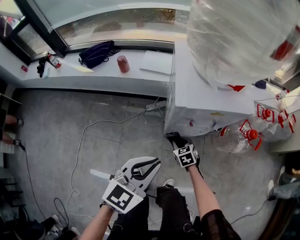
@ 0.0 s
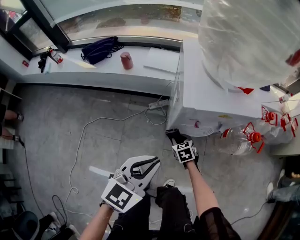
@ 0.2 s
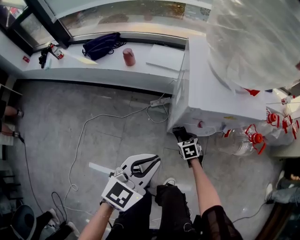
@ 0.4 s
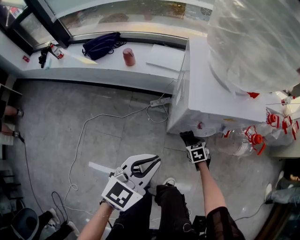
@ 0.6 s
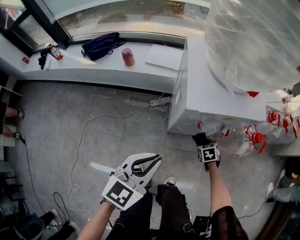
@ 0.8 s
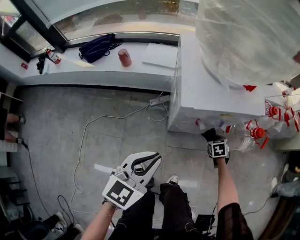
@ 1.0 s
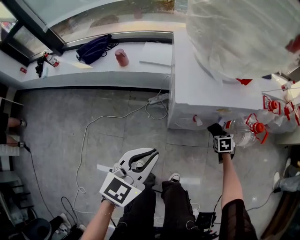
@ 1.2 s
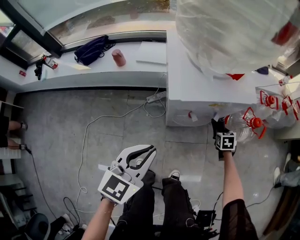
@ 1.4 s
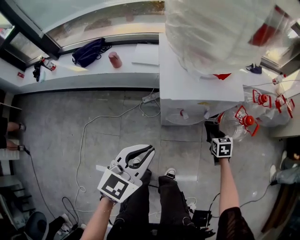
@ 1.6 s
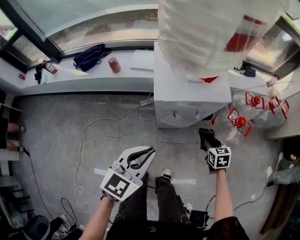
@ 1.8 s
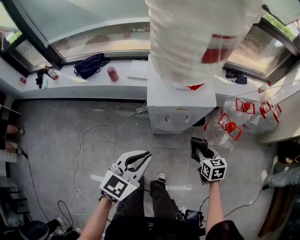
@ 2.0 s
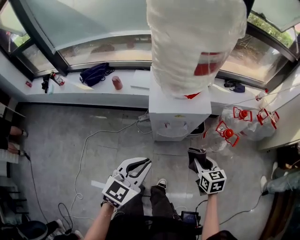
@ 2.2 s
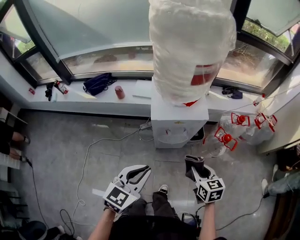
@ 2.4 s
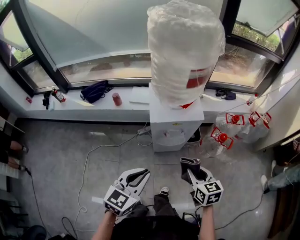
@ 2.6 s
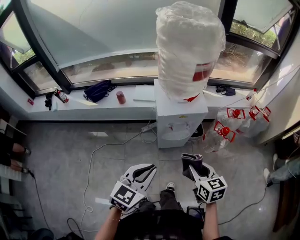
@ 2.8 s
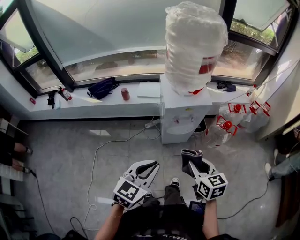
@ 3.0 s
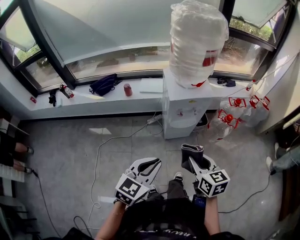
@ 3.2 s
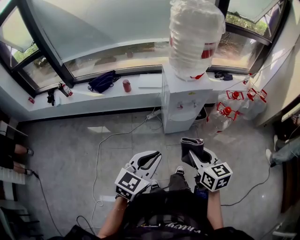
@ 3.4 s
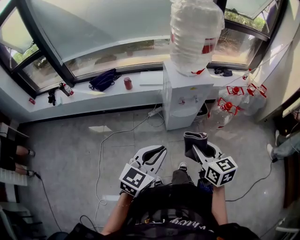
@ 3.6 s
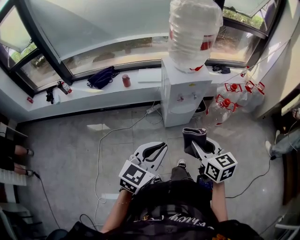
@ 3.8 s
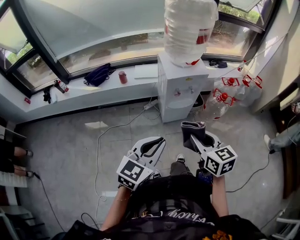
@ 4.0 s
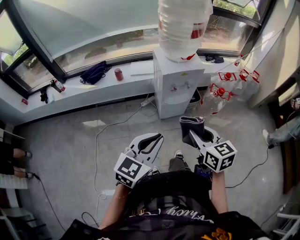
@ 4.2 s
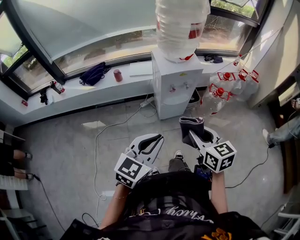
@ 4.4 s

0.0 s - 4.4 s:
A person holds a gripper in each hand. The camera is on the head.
0.0 s - 1.4 s: The right gripper travels to the right by about 25 cm, and changes its angle by roughly 30 degrees.
1.4 s - 3.0 s: The right gripper heads upward and backward, covering approximately 50 cm, and swivels about 40 degrees. The left gripper is displaced upward and backward by about 30 cm.
3.0 s - 4.4 s: The right gripper heads backward and upward, covering approximately 10 cm; the left gripper travels backward by some 10 cm.

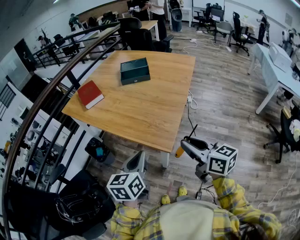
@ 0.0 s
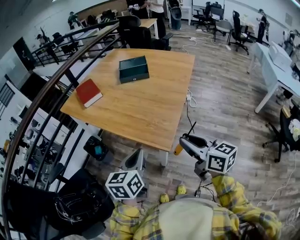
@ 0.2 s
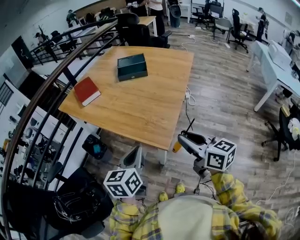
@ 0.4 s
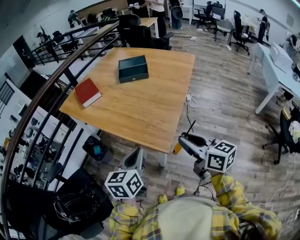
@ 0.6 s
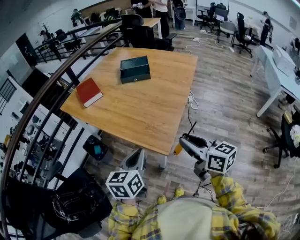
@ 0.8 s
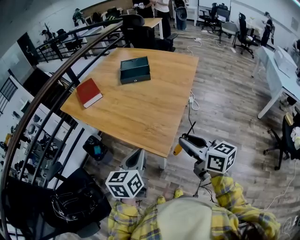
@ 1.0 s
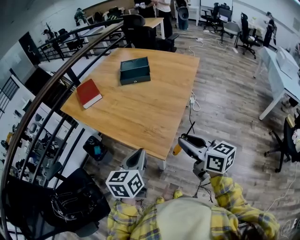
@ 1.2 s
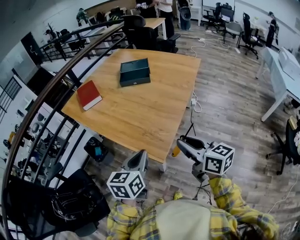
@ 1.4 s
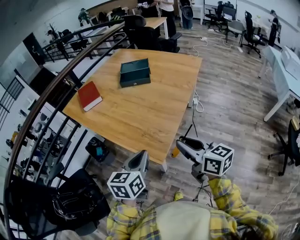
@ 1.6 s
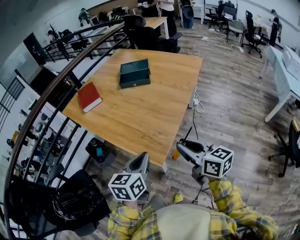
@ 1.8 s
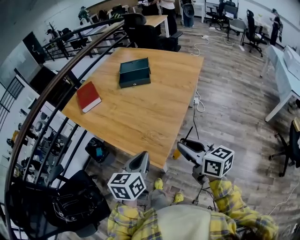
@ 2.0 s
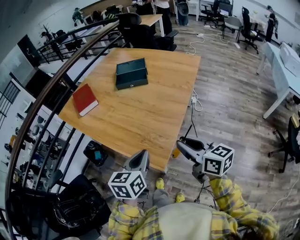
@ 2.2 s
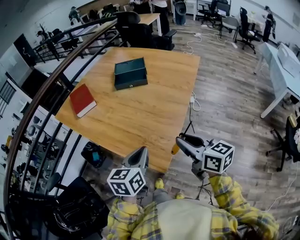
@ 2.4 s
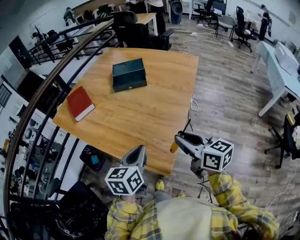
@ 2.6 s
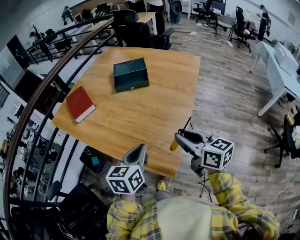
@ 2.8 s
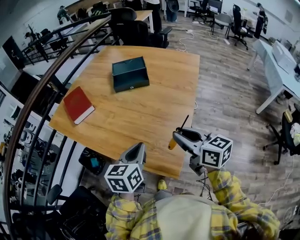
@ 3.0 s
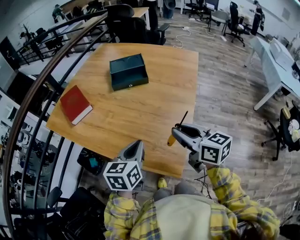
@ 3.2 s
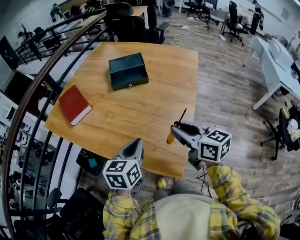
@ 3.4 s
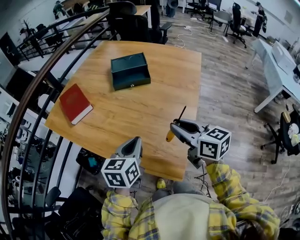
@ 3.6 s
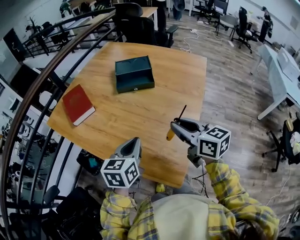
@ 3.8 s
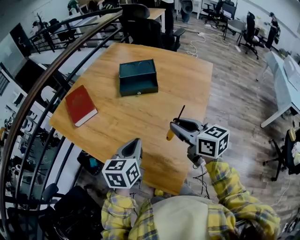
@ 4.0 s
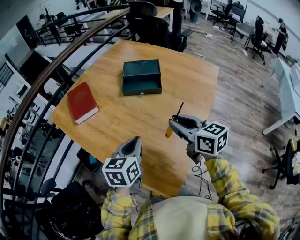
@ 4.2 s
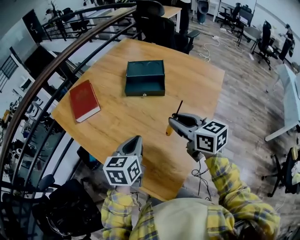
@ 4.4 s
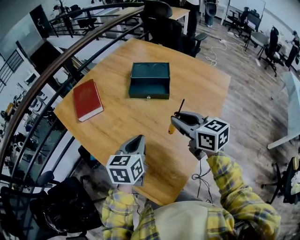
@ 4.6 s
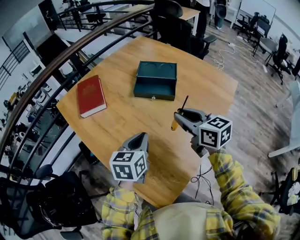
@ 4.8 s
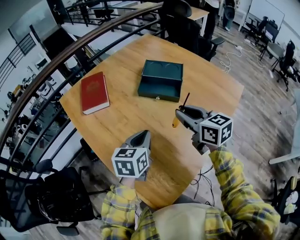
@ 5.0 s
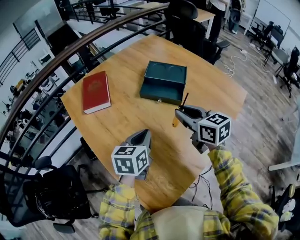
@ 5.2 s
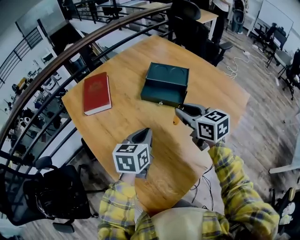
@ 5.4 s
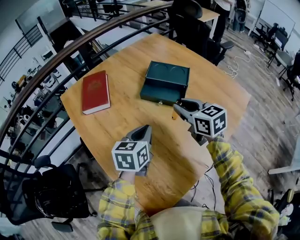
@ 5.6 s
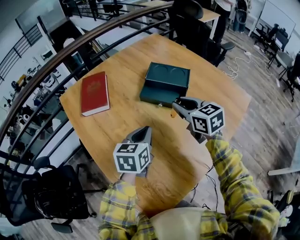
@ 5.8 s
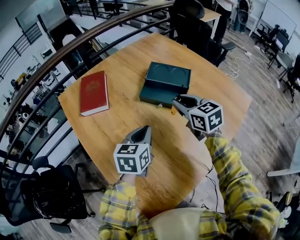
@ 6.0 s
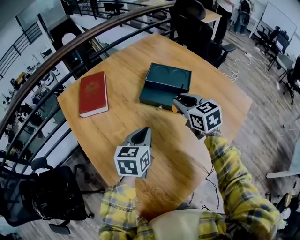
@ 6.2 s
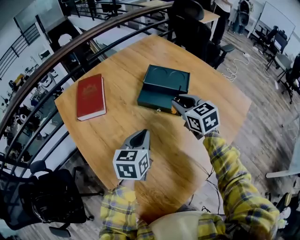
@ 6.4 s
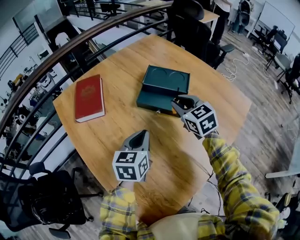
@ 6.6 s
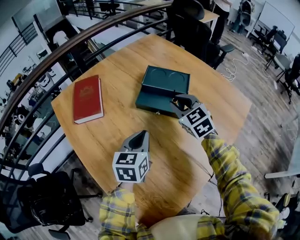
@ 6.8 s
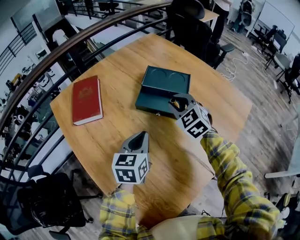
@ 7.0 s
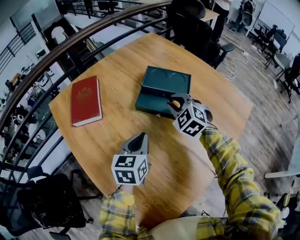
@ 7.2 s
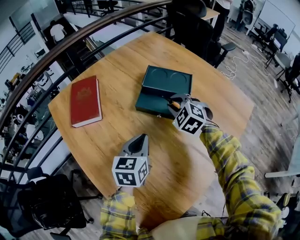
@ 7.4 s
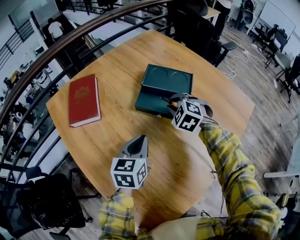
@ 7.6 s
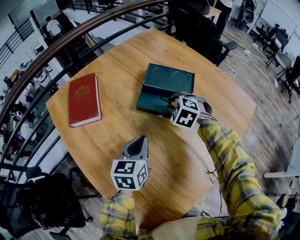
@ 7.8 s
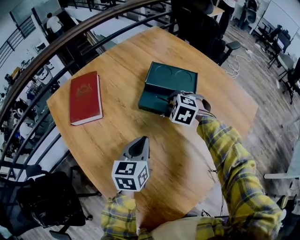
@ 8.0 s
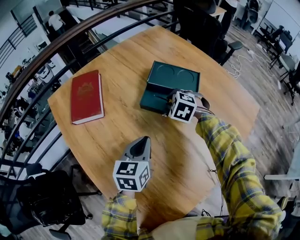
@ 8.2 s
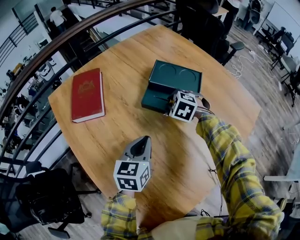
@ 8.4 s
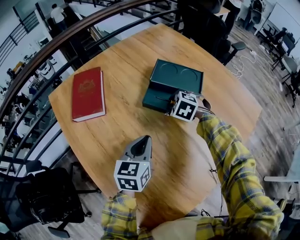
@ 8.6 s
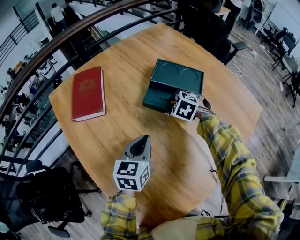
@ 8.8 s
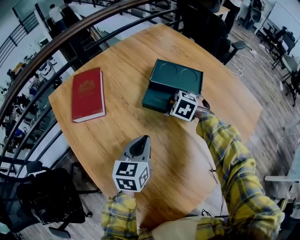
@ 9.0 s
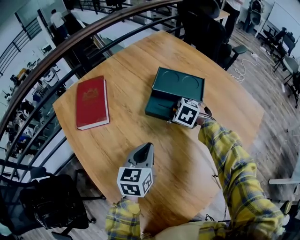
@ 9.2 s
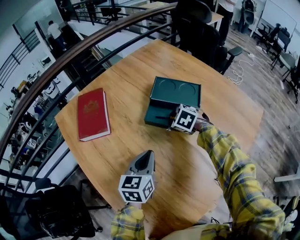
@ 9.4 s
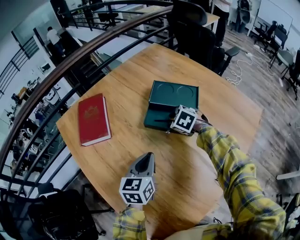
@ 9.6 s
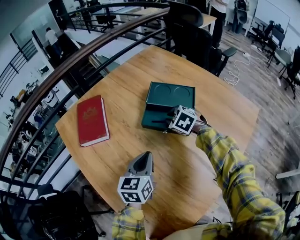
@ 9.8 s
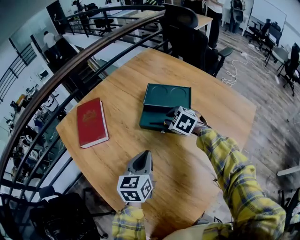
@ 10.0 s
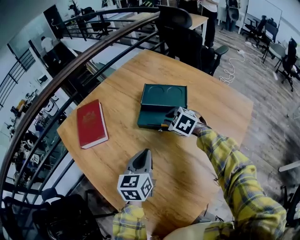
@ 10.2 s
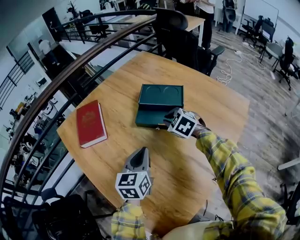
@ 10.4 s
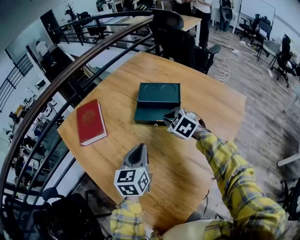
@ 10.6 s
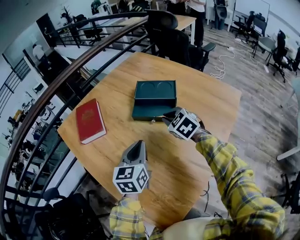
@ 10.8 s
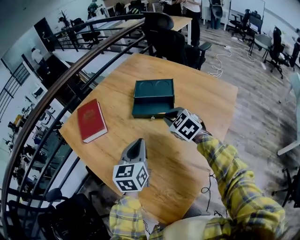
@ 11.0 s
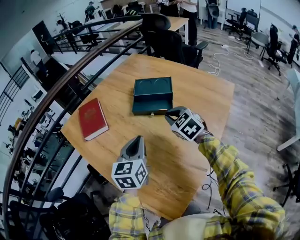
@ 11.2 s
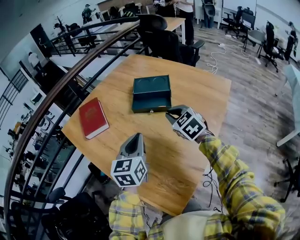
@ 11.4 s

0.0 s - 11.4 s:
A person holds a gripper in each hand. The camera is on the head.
0.0 s - 1.4 s: The right gripper travels forward by about 5 cm; the left gripper travels to the right by approximately 5 cm.
1.4 s - 2.8 s: Both grippers travel together forward, approximately 15 cm.
2.8 s - 4.2 s: Both grippers travel together forward, about 15 cm.
4.2 s - 5.6 s: The left gripper moves forward, some 10 cm; the right gripper moves forward, roughly 20 cm, and turns by some 20 degrees.
5.6 s - 7.2 s: The right gripper is displaced forward and downward by about 15 cm, and twists some 50 degrees counterclockwise, seen from behind. Meanwhile the left gripper moves forward, about 5 cm.
7.2 s - 8.6 s: The right gripper is displaced downward by about 10 cm, and rotates roughly 30 degrees.
8.6 s - 10.0 s: There are only small adjustments of the grippers.
10.0 s - 11.4 s: The left gripper heads backward and upward, covering roughly 15 cm. The right gripper goes approximately 20 cm backward and upward, and swivels approximately 30 degrees.

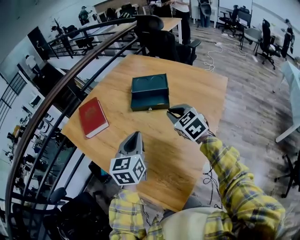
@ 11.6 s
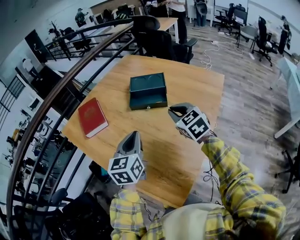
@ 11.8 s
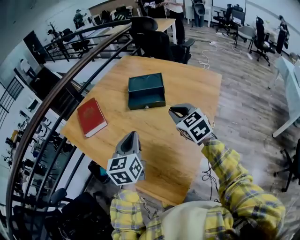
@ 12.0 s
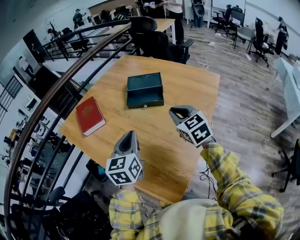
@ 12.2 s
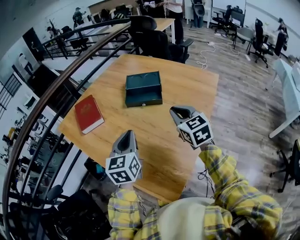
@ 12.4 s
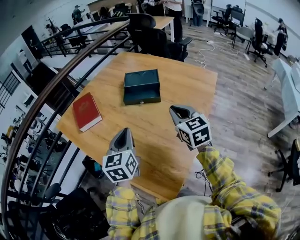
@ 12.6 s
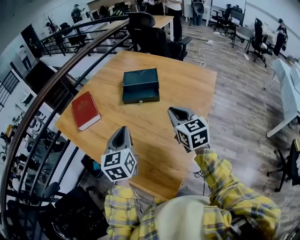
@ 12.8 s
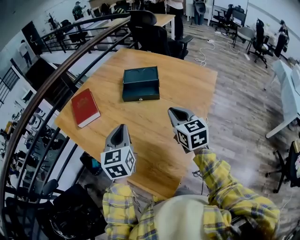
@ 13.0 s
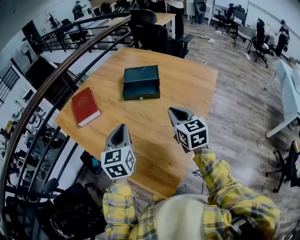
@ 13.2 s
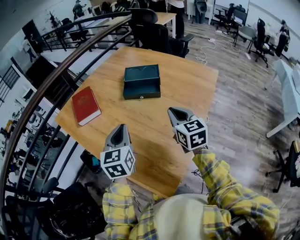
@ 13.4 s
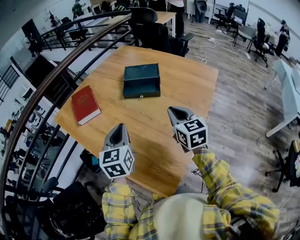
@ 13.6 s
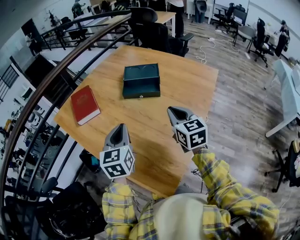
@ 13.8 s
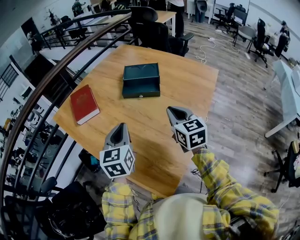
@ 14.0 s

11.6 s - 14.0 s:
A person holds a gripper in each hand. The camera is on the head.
11.6 s - 12.8 s: The right gripper moves backward, about 5 cm, and turns by some 20 degrees.
12.8 s - 14.0 s: The grippers move only a little.

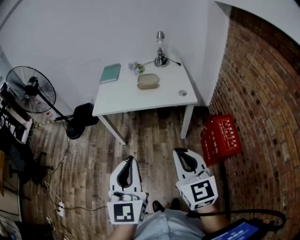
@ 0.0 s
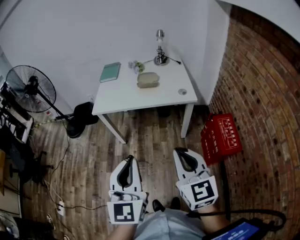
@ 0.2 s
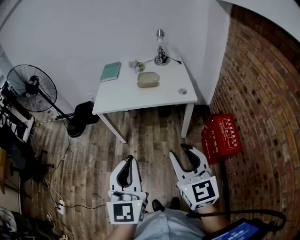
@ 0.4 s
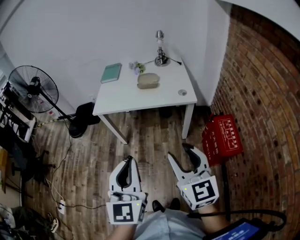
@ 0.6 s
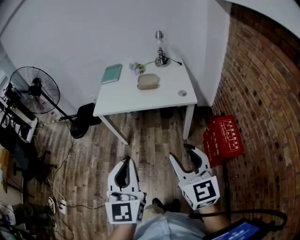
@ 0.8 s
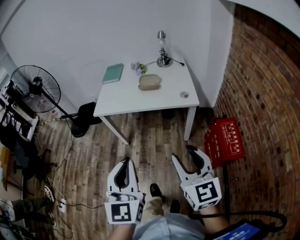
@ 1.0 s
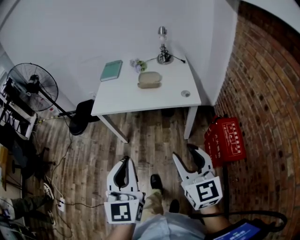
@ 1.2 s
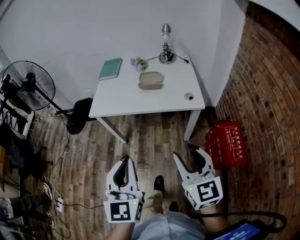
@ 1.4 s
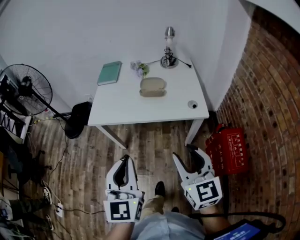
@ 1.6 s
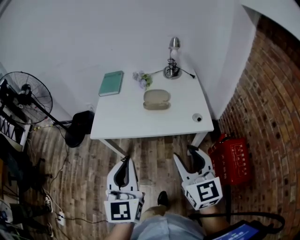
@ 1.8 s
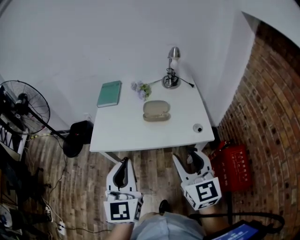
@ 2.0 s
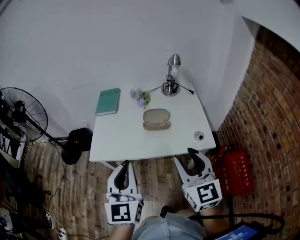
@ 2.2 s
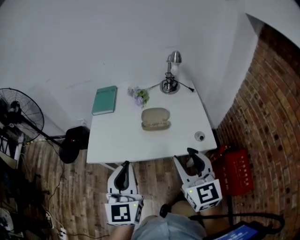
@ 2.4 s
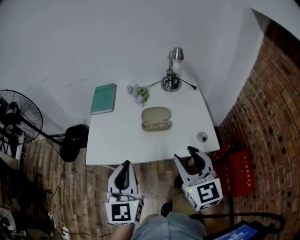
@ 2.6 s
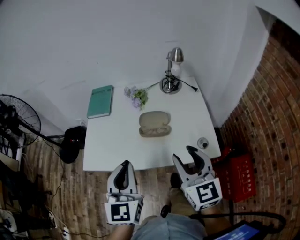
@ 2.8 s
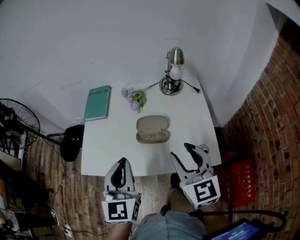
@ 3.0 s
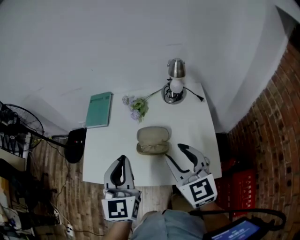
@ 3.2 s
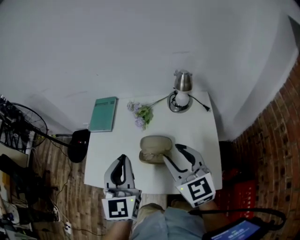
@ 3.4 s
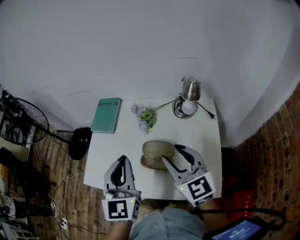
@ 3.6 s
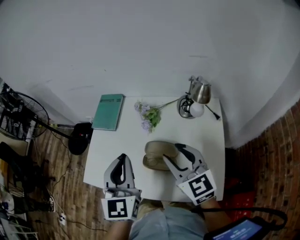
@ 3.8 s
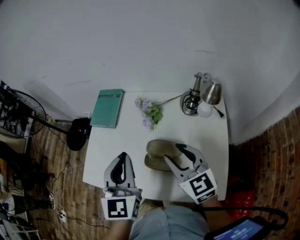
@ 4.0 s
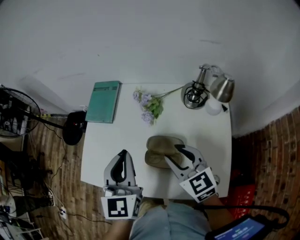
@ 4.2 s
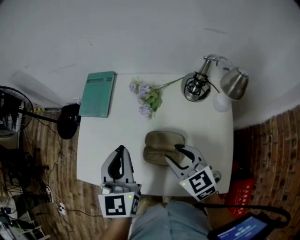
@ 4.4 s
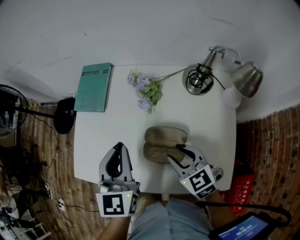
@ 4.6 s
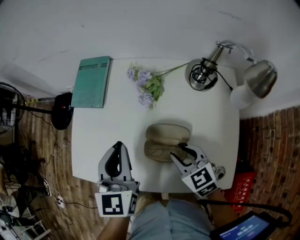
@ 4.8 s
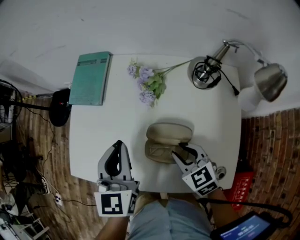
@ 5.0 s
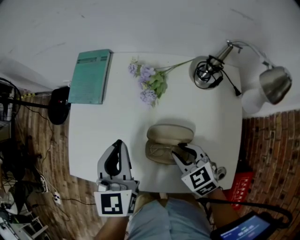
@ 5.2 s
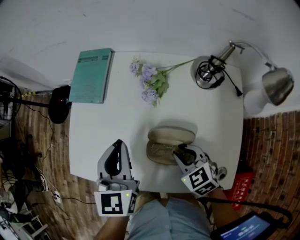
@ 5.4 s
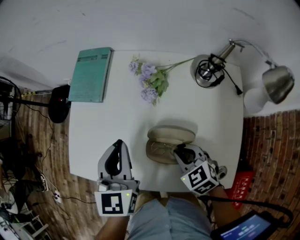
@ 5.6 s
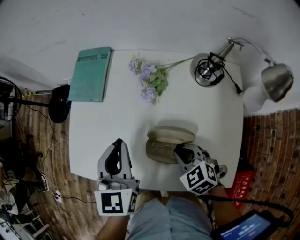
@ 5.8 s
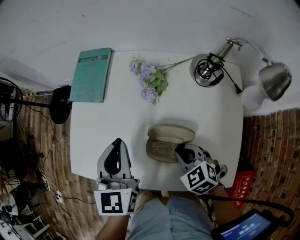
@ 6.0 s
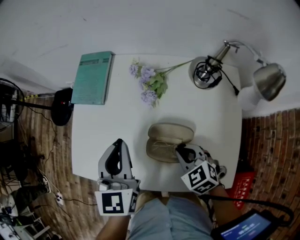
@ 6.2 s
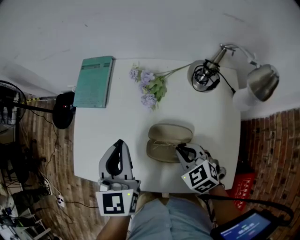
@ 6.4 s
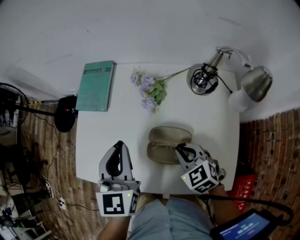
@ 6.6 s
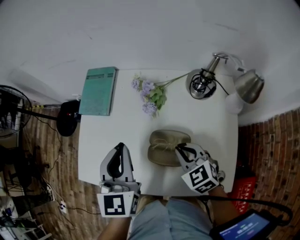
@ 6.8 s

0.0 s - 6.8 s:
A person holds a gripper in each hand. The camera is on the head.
0.0 s - 1.4 s: The two grippers go some 10 cm forward. The right gripper opens.
1.4 s - 2.8 s: The grippers both shift forward by approximately 30 cm.
2.8 s - 4.0 s: Both grippers move forward, roughly 20 cm. The right gripper changes its angle by approximately 30 degrees.
4.0 s - 5.4 s: The left gripper heads downward and forward, covering some 15 cm; the right gripper heads downward, covering roughly 20 cm, points its fingers approximately 30 degrees further downward, and closes up.
5.4 s - 6.8 s: Both grippers move upward, about 5 cm.
